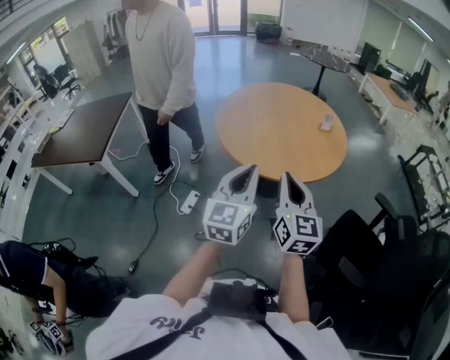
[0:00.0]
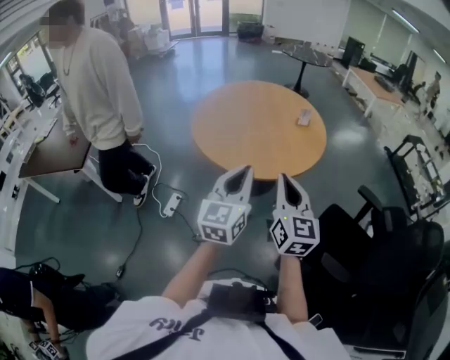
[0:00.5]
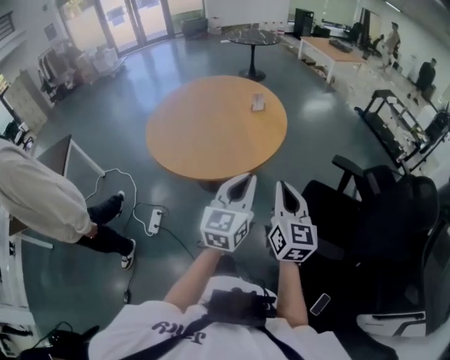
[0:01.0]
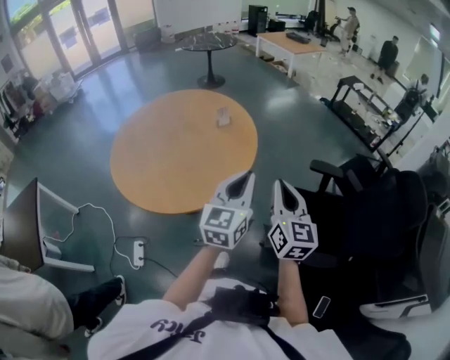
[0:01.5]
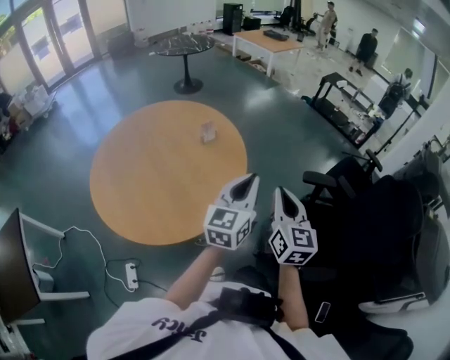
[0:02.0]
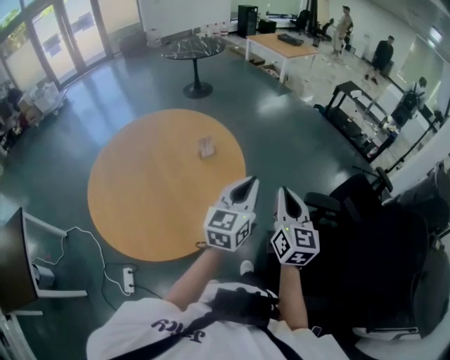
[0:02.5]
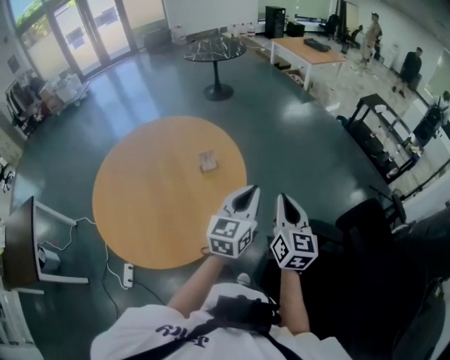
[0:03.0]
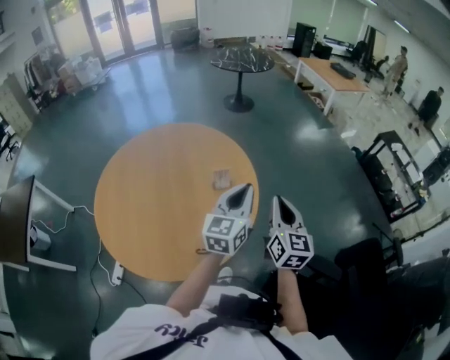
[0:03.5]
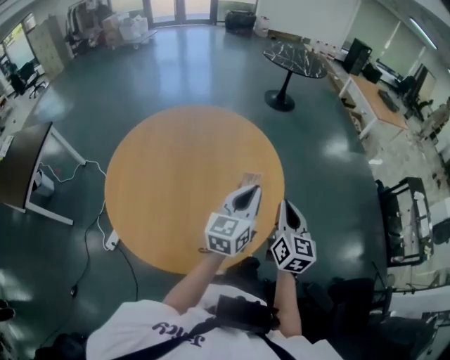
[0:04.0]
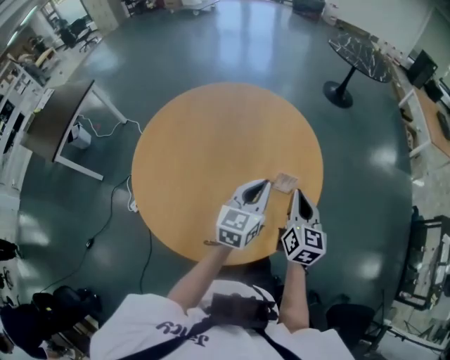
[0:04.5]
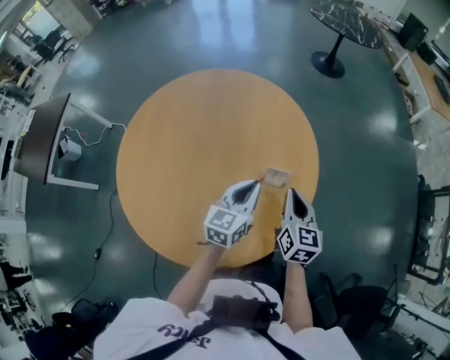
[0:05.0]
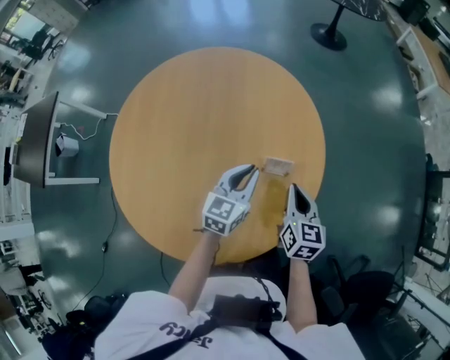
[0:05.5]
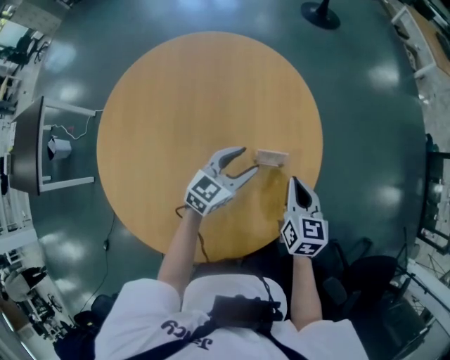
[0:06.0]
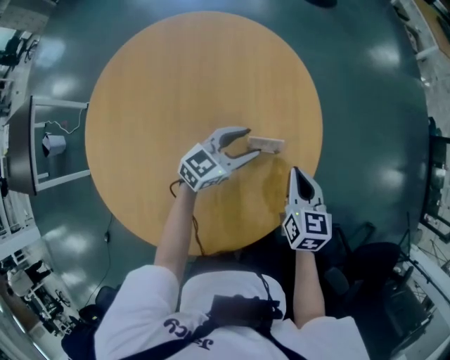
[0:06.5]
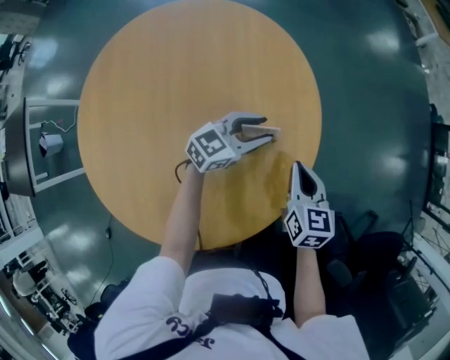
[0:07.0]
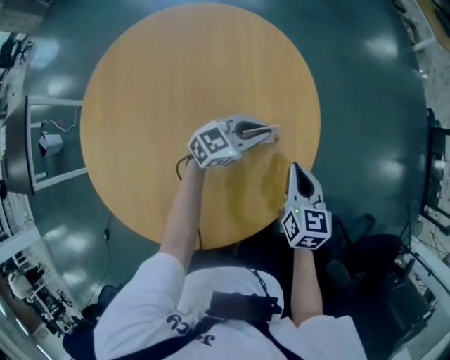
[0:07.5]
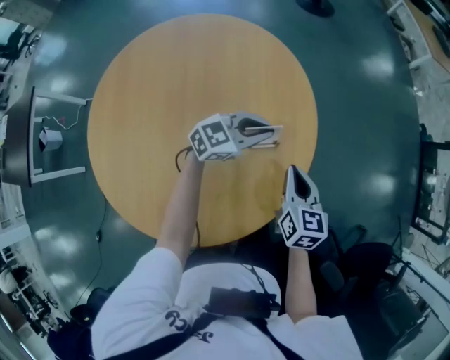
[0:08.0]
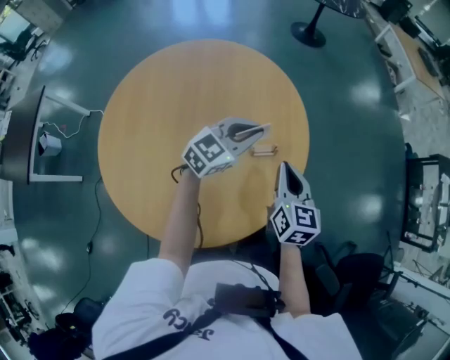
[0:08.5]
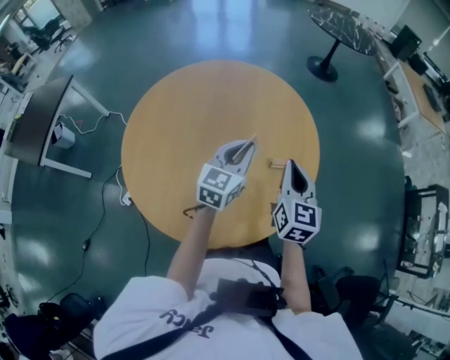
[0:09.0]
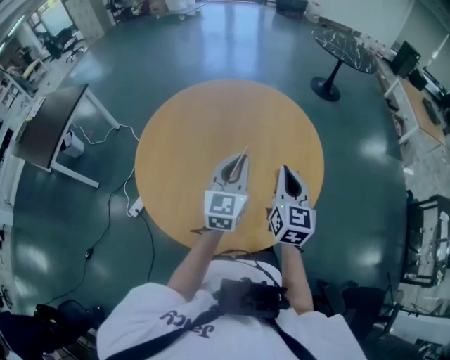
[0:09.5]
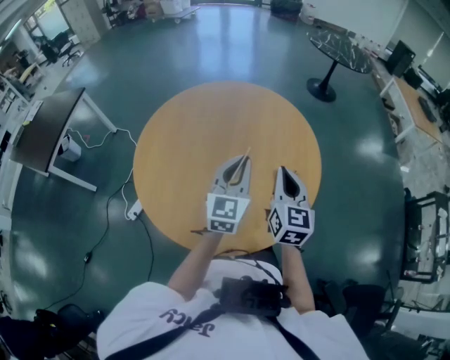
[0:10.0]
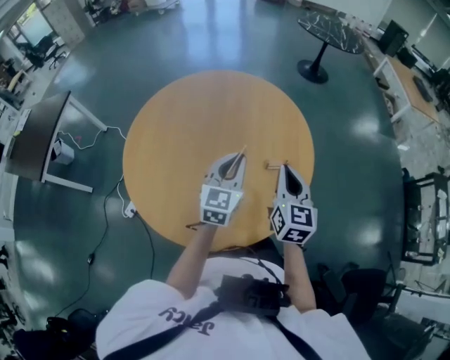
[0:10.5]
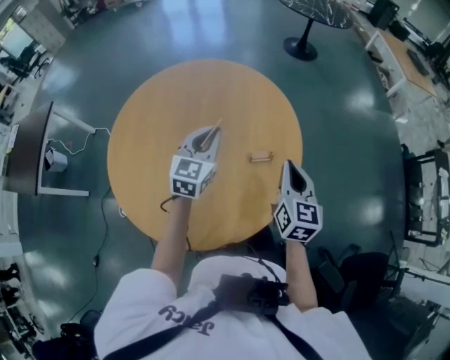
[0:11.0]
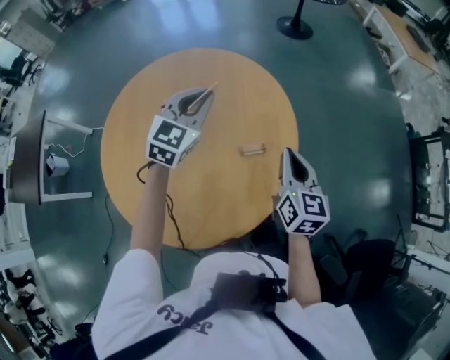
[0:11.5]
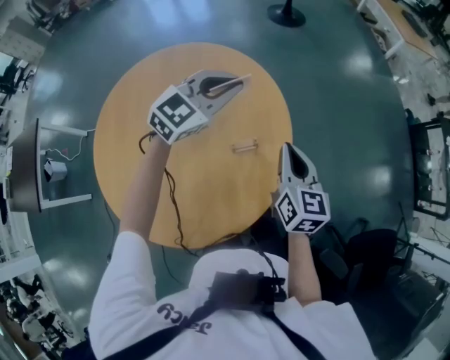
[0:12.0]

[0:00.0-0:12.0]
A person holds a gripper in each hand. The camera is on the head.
0:00.0 to 0:02.0: The left gripper changes place by some 40 cm, and rotates approximately 40 degrees. Meanwhile the right gripper ends up some 40 cm from where it was, and changes its angle by approximately 40 degrees.
0:02.0 to 0:04.0: The left gripper changes place by approximately 30 cm, and changes its angle by about 30 degrees. The right gripper shifts by roughly 35 cm, and rotates some 30 degrees.
0:04.0 to 0:06.0: The grippers both shift downward and forward by roughly 20 cm. The right gripper rotates approximately 20 degrees. The left gripper turns by some 30 degrees, and opens its fingers.
0:06.0 to 0:08.0: The left gripper is displaced forward and to the right by approximately 10 cm, swivels some 30 degrees, and closes.
0:08.0 to 0:10.0: The left gripper shifts by some 30 cm, and changes its angle by about 70 degrees. The right gripper shifts some 15 cm upward, and changes its angle by some 30 degrees.
0:10.0 to 0:12.0: The right gripper moves approximately 20 cm, while the left gripper shifts by roughly 25 cm, and turns by some 60 degrees.

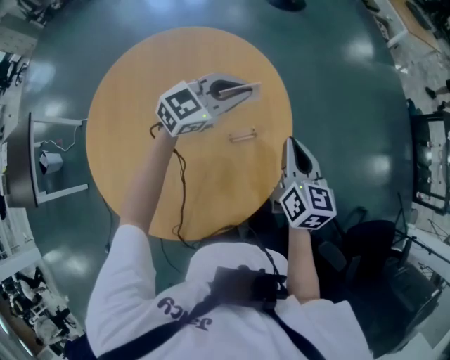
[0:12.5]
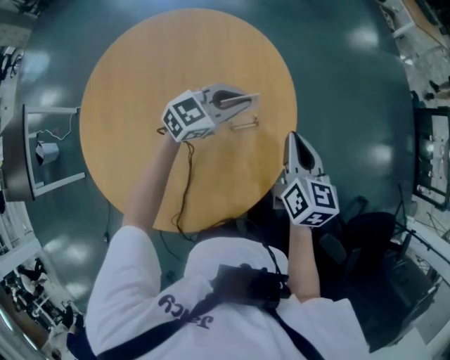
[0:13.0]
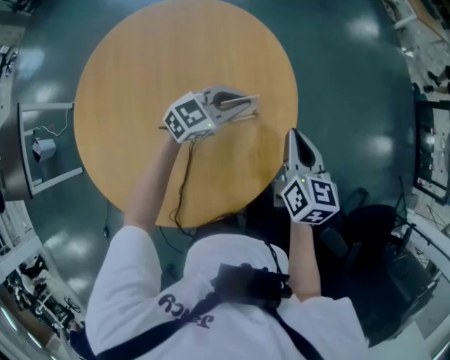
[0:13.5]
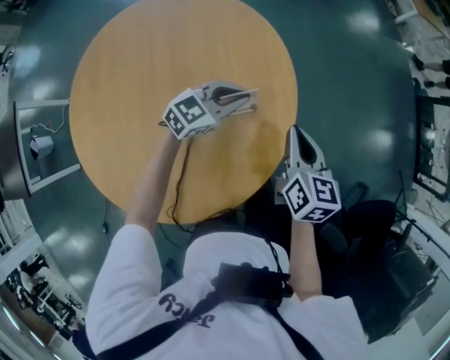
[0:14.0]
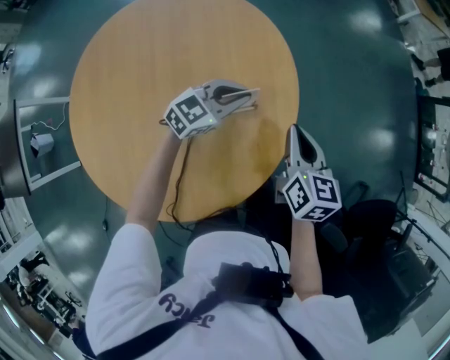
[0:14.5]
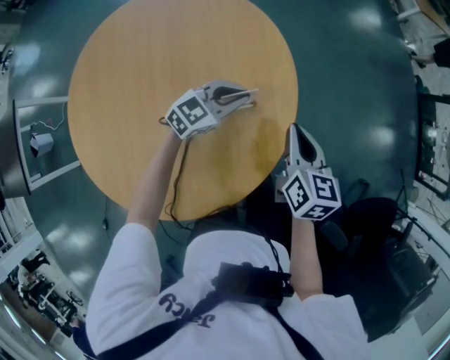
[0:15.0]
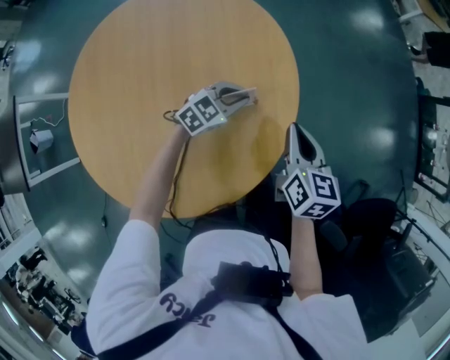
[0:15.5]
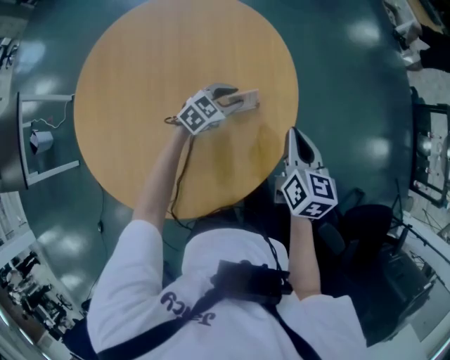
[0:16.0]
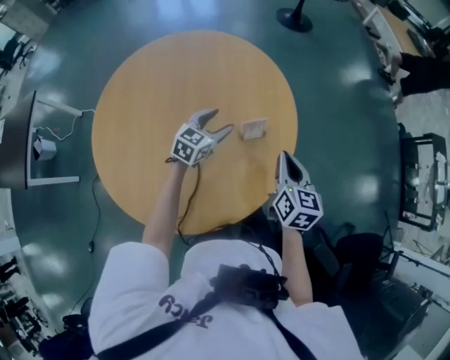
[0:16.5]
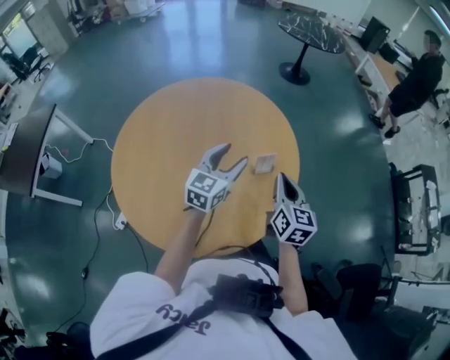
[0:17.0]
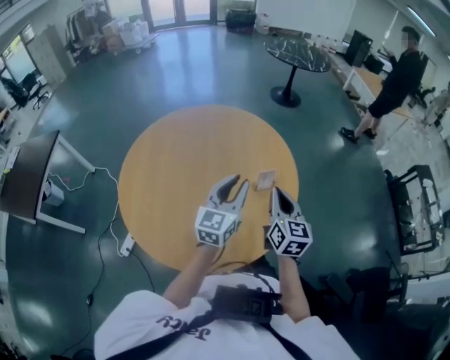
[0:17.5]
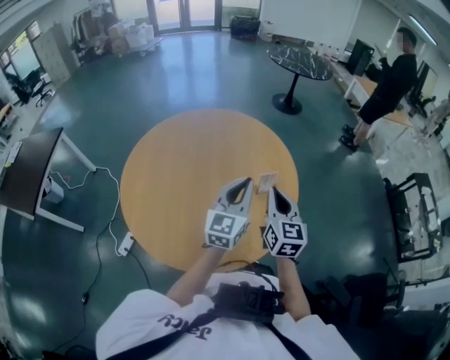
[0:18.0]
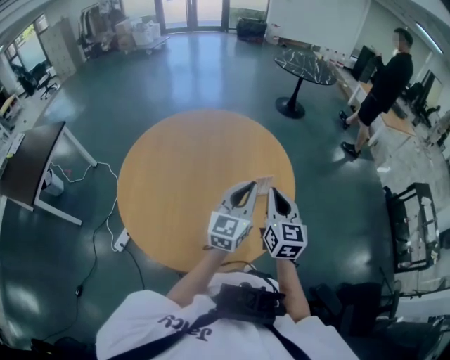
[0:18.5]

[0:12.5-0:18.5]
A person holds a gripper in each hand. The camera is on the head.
0:12.5 to 0:14.5: The left gripper shifts approximately 15 cm downward. Meanwhile the right gripper goes roughly 5 cm downward.
0:14.5 to 0:16.5: The left gripper travels to the left by some 10 cm, turns by about 30 degrees, and opens; the right gripper shifts by roughly 5 cm.
0:16.5 to 0:18.5: The left gripper travels upward and backward by some 25 cm, angles its fingers upward, by roughly 30 degrees, and closes its fingers, while the right gripper shifts about 10 cm upward and to the left, and swivels some 20 degrees.

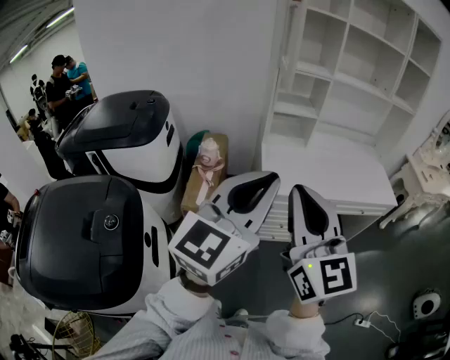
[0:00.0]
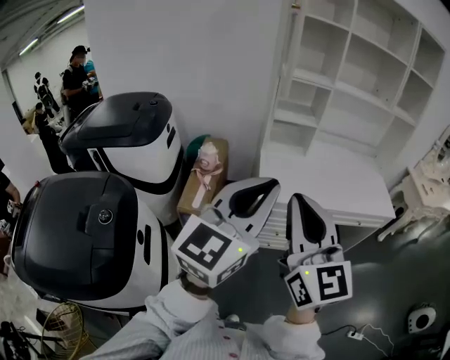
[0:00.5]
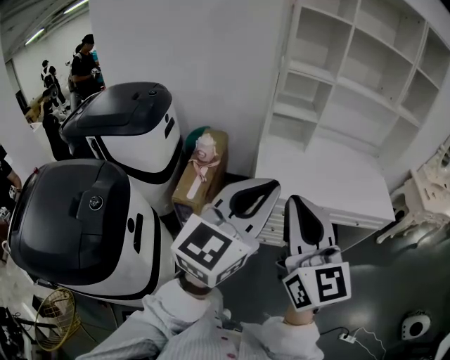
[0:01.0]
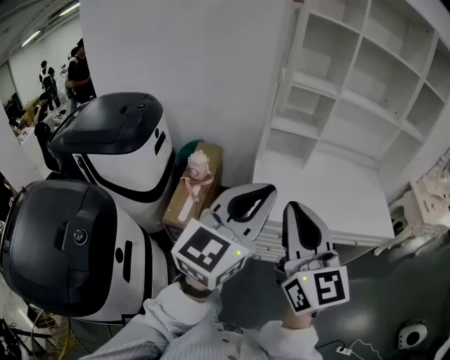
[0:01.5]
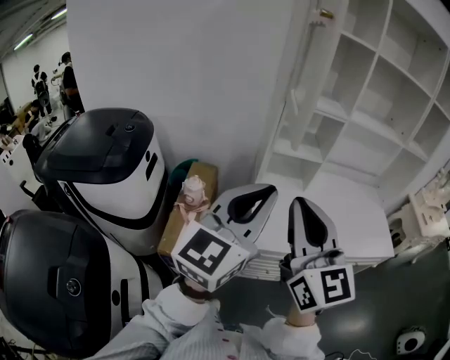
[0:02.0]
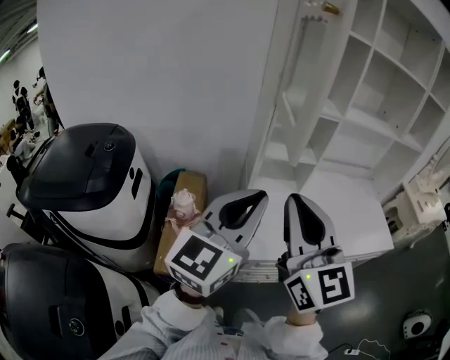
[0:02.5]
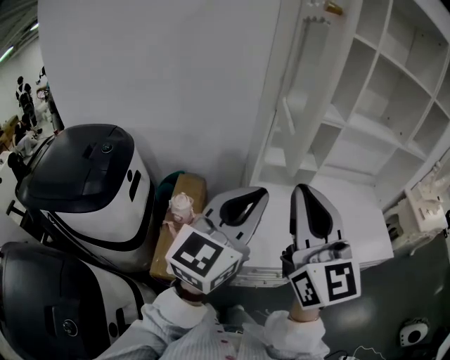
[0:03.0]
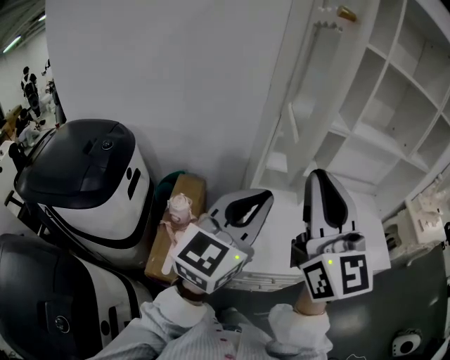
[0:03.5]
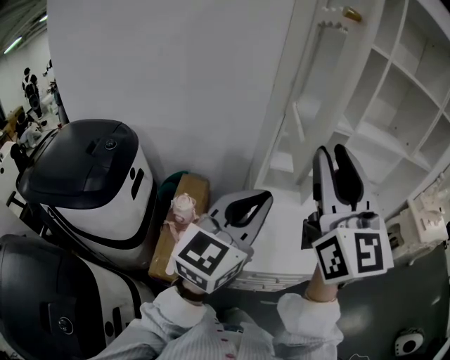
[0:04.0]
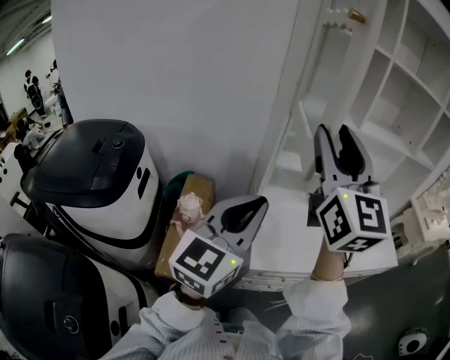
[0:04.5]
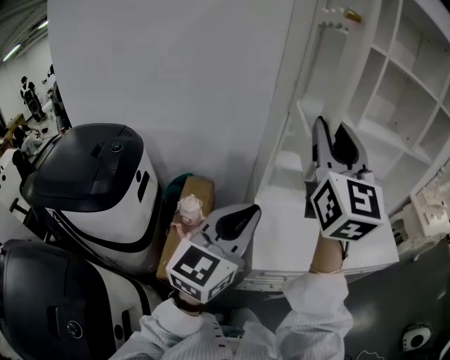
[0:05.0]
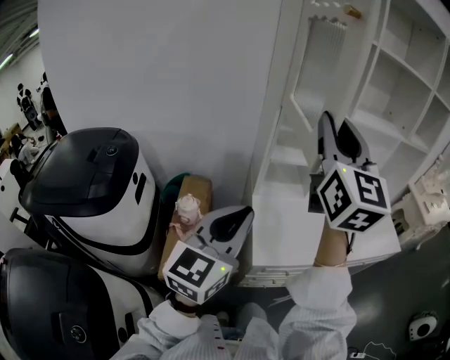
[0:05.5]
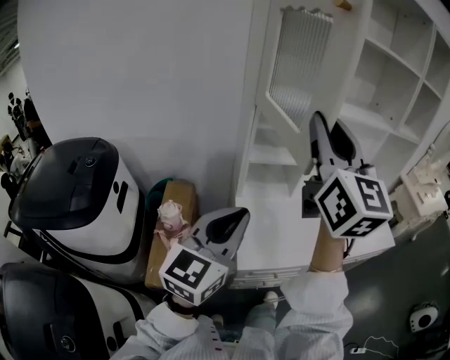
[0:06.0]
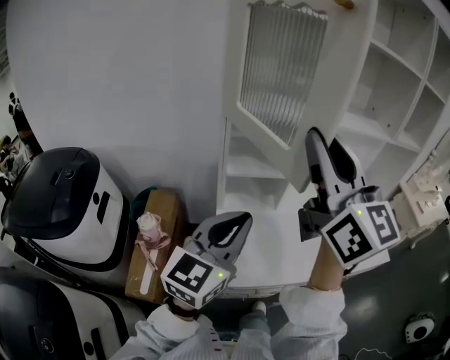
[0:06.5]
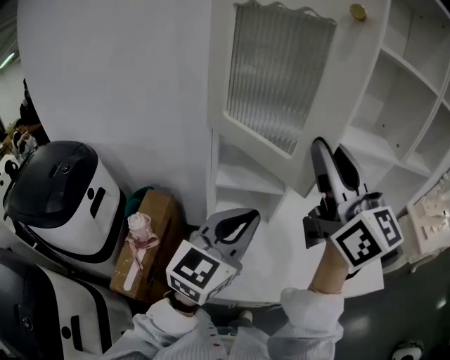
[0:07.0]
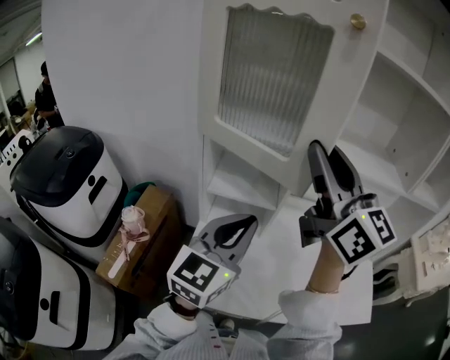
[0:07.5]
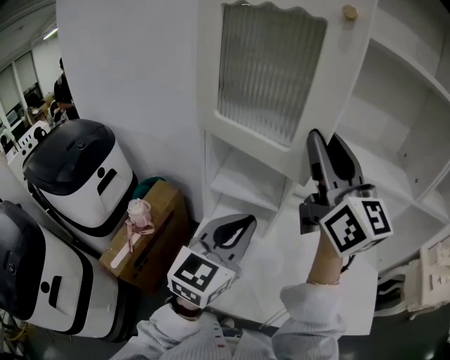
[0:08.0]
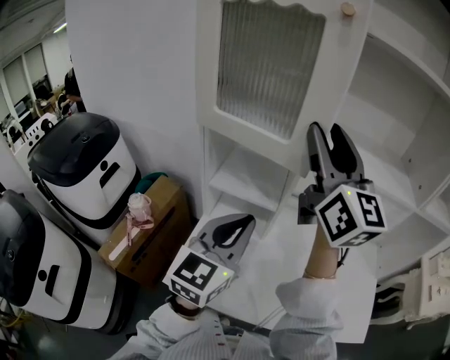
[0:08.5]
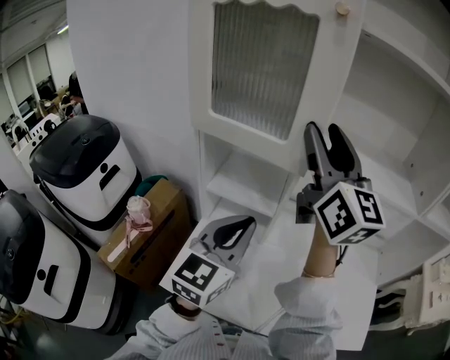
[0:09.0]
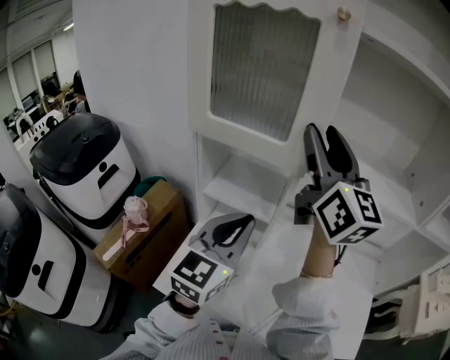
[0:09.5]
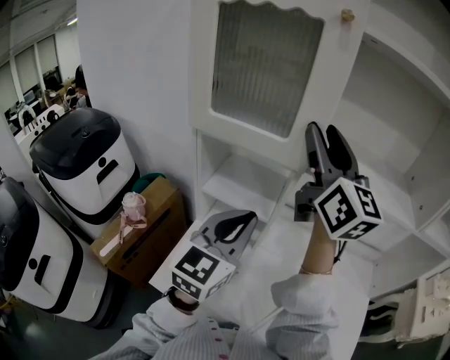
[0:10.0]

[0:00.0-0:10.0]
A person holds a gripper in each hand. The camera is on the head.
0:00.0 to 0:02.0: Both grippers move forward, roughly 20 cm.
0:02.0 to 0:04.0: The right gripper goes approximately 15 cm forward and upward; the left gripper heads forward, covering approximately 10 cm.
0:04.0 to 0:06.0: The left gripper moves downward, roughly 5 cm. Meanwhile the right gripper heads forward and to the right, covering some 10 cm.
0:06.0 to 0:08.0: Both grippers travel together to the right and forward, some 30 cm. The right gripper turns by some 30 degrees.
0:08.0 to 0:10.0: The left gripper changes place by roughly 5 cm. The right gripper shifts roughly 10 cm forward, and opens.
